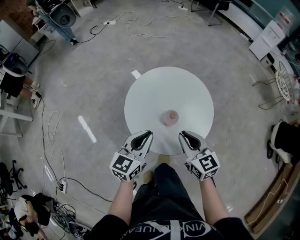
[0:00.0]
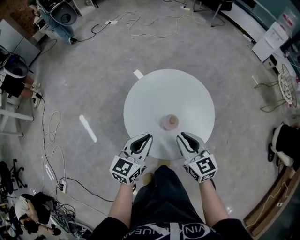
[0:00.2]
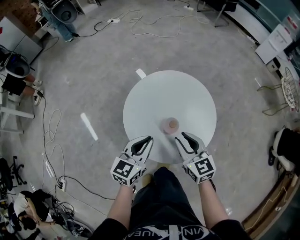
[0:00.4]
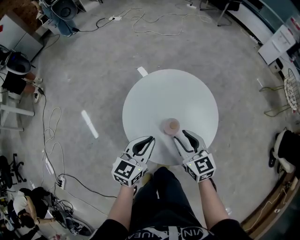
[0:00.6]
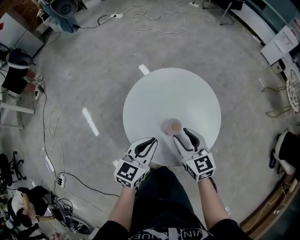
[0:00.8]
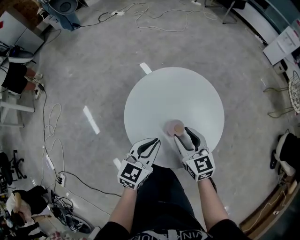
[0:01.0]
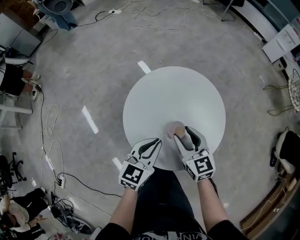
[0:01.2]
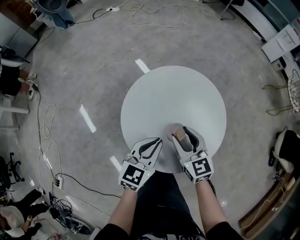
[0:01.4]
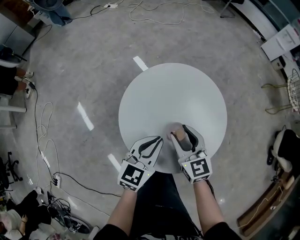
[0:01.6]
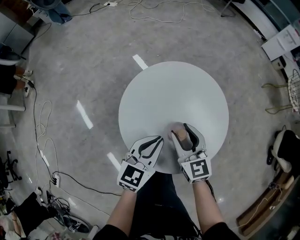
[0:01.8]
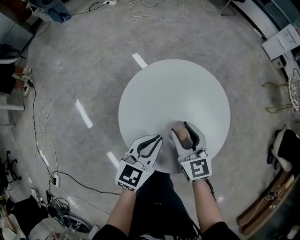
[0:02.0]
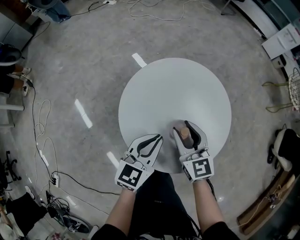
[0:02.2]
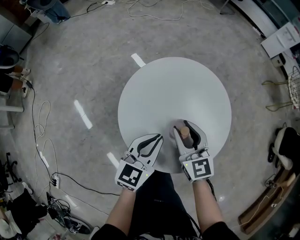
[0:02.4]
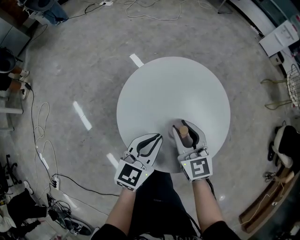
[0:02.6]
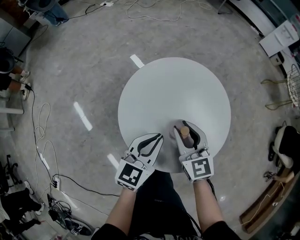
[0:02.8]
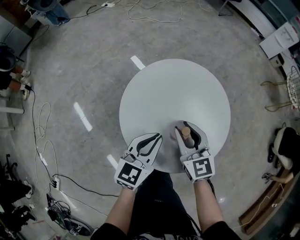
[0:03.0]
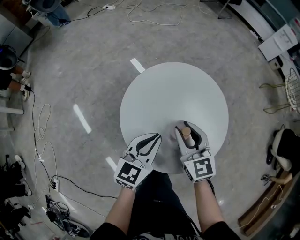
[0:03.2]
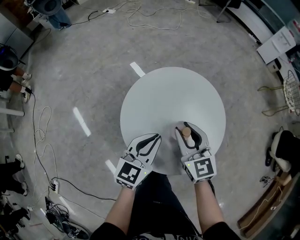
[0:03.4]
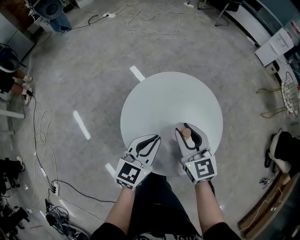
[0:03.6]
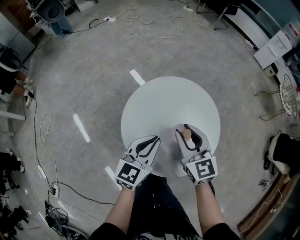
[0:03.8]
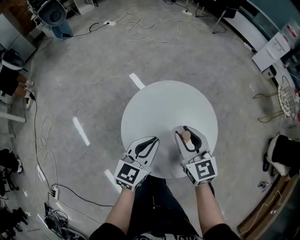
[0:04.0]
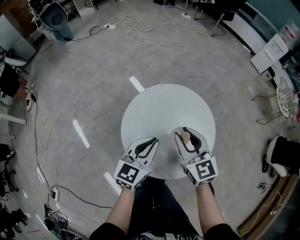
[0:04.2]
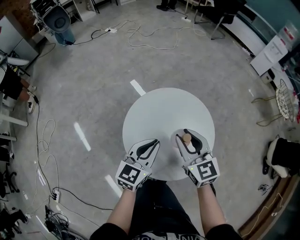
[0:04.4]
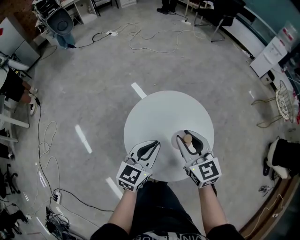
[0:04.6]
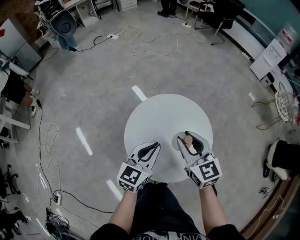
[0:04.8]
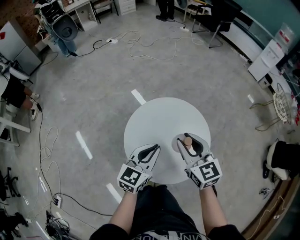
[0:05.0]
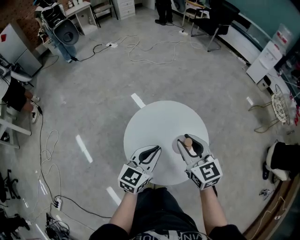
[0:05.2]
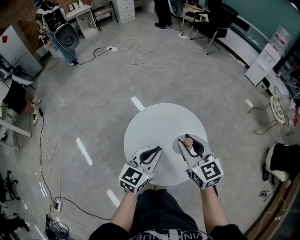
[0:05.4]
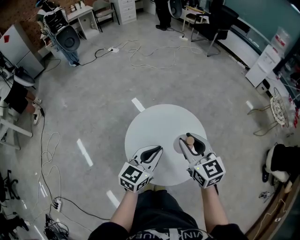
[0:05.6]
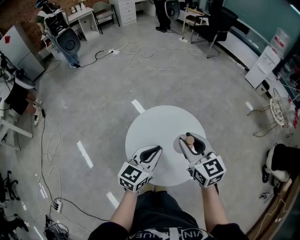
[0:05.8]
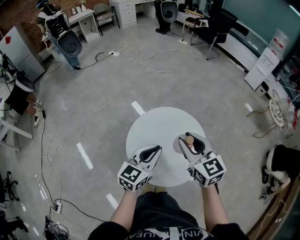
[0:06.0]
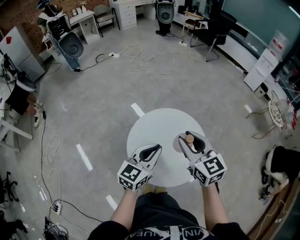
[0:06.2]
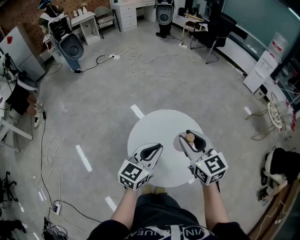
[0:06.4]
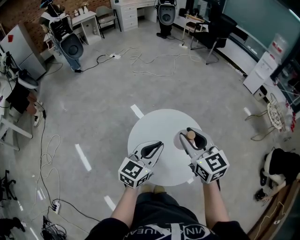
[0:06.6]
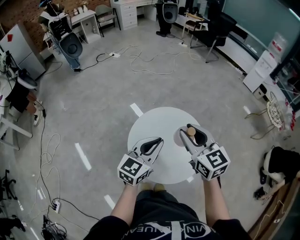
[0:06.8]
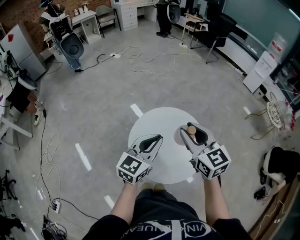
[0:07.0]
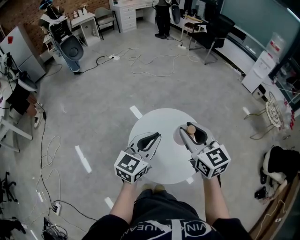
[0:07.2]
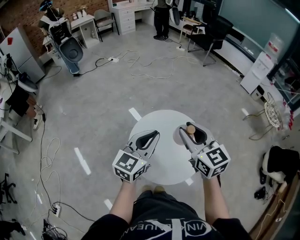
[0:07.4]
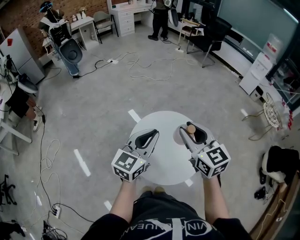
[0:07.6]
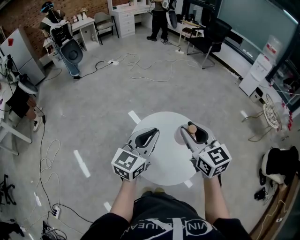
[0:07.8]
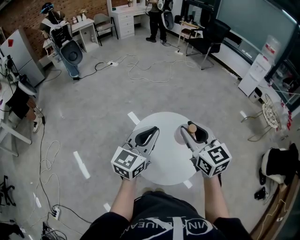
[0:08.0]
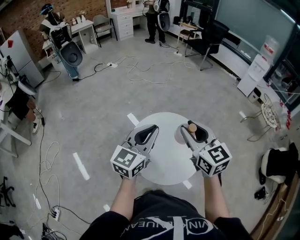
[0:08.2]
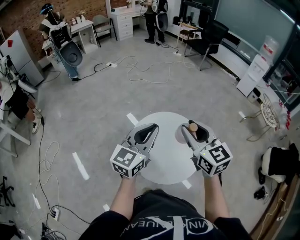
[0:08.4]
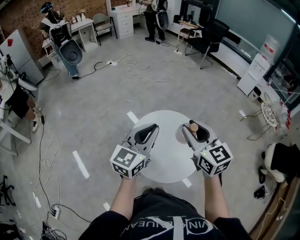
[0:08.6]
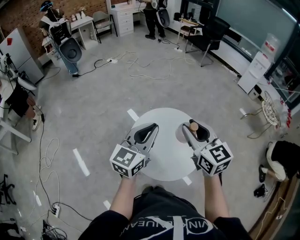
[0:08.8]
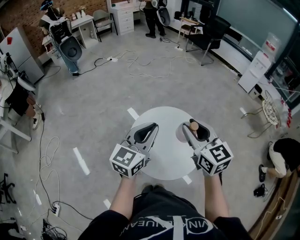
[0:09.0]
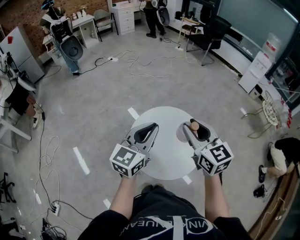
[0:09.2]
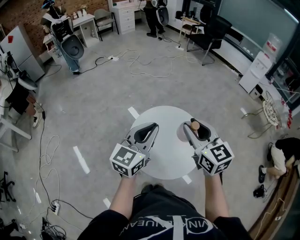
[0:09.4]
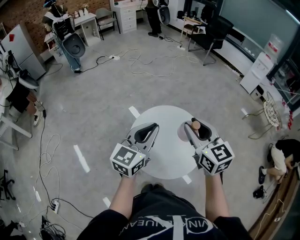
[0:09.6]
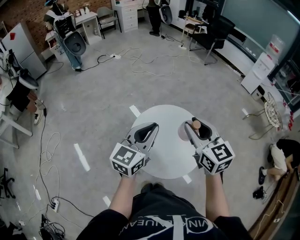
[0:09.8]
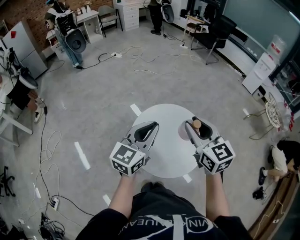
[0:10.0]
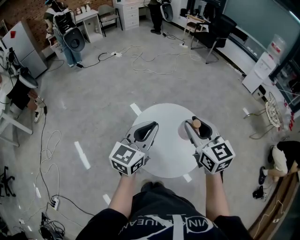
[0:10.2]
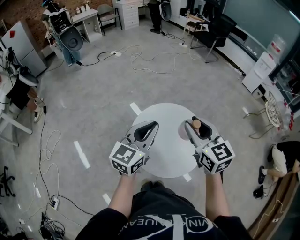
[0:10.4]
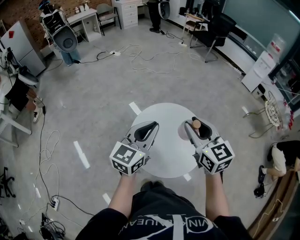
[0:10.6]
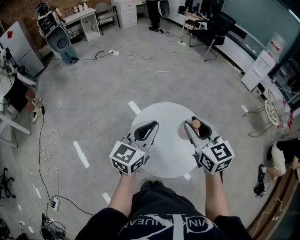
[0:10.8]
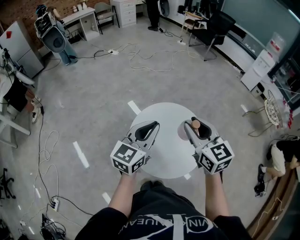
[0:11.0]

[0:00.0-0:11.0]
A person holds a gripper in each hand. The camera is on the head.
0:00.0 to 0:01.6: The left gripper goes approximately 10 cm downward and forward. The right gripper travels forward and downward by about 15 cm, and opens up.
0:01.6 to 0:03.2: The grippers make only small movements.
0:03.2 to 0:04.8: Both grippers travel together upward, about 10 cm.
0:04.8 to 0:06.2: The two grippers go some 10 cm upward.
0:06.2 to 0:07.8: The grippers both shift upward by approximately 10 cm.
0:07.8 to 0:11.0: The grippers stay close to where they were, moving slightly.

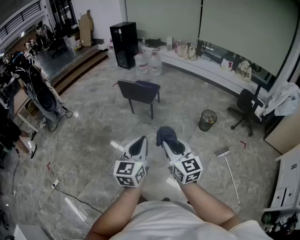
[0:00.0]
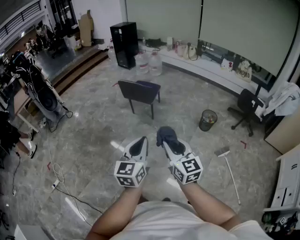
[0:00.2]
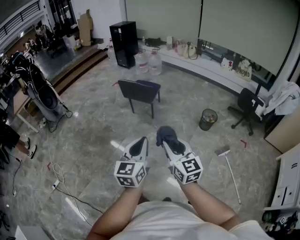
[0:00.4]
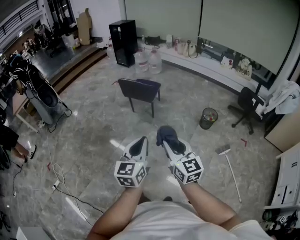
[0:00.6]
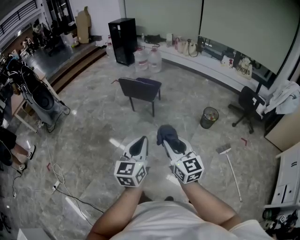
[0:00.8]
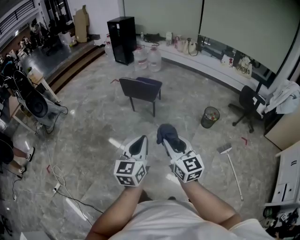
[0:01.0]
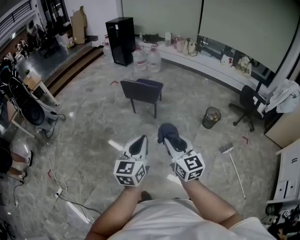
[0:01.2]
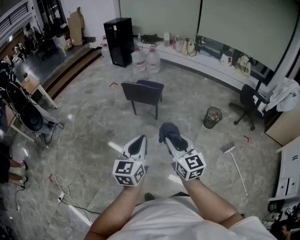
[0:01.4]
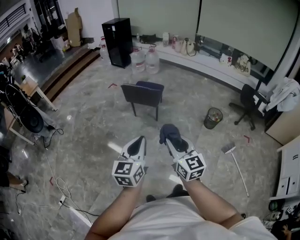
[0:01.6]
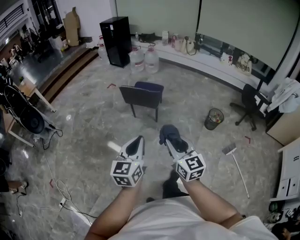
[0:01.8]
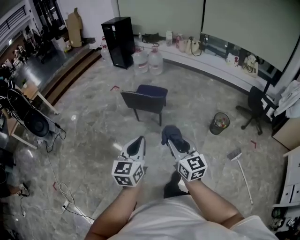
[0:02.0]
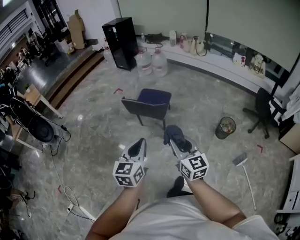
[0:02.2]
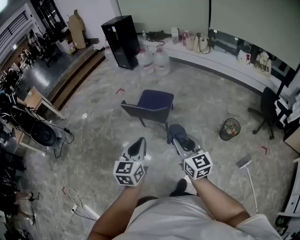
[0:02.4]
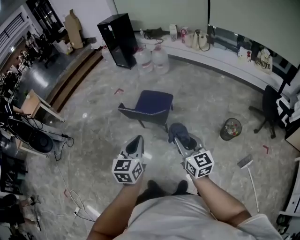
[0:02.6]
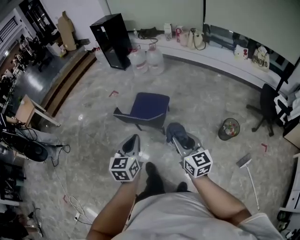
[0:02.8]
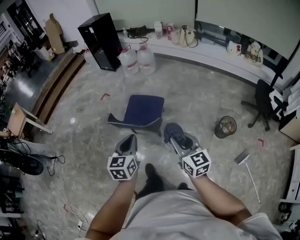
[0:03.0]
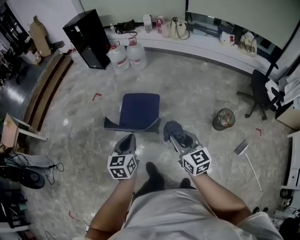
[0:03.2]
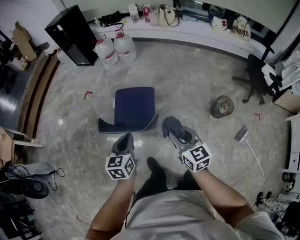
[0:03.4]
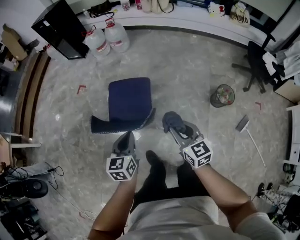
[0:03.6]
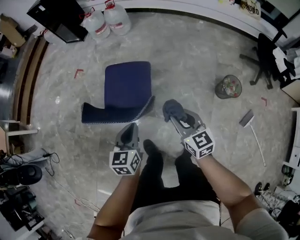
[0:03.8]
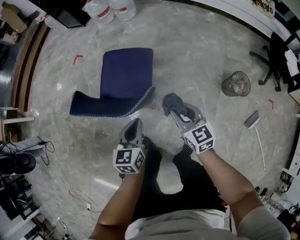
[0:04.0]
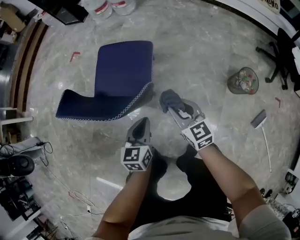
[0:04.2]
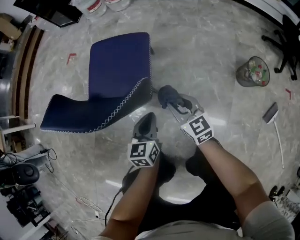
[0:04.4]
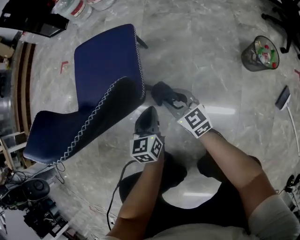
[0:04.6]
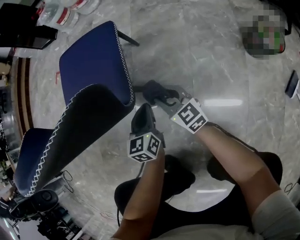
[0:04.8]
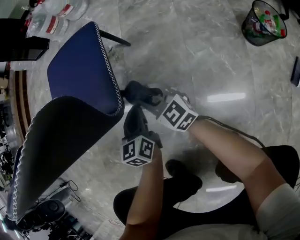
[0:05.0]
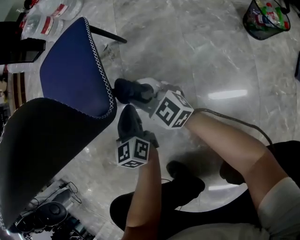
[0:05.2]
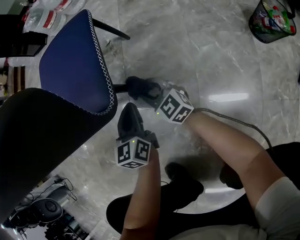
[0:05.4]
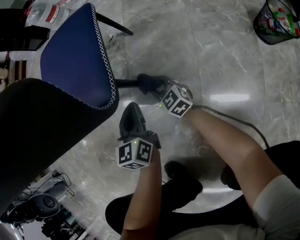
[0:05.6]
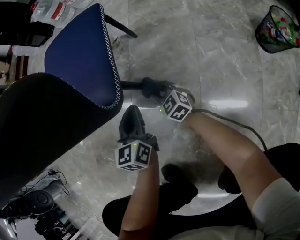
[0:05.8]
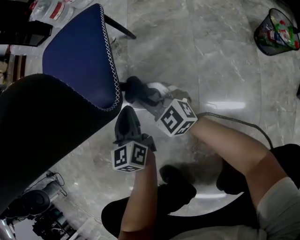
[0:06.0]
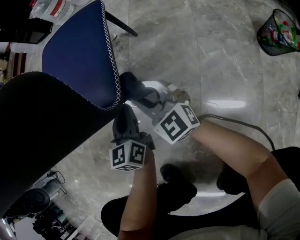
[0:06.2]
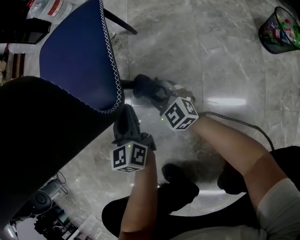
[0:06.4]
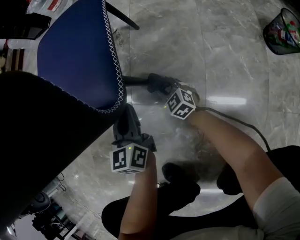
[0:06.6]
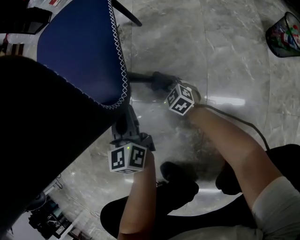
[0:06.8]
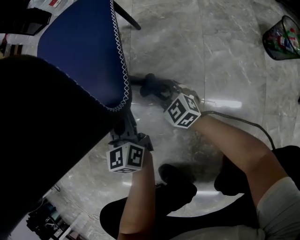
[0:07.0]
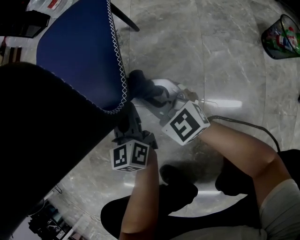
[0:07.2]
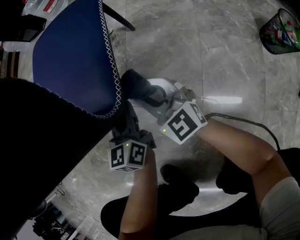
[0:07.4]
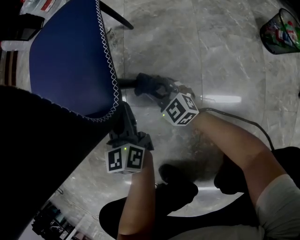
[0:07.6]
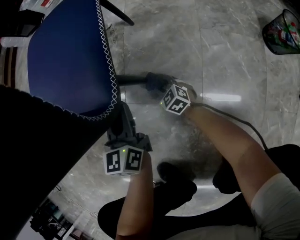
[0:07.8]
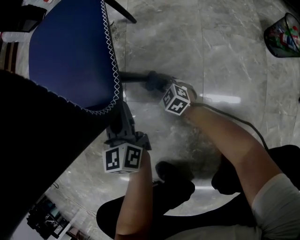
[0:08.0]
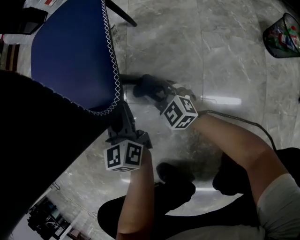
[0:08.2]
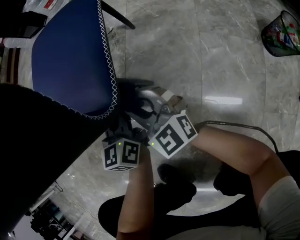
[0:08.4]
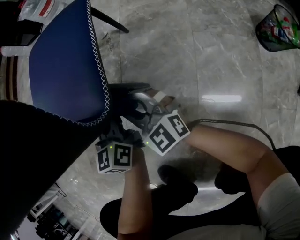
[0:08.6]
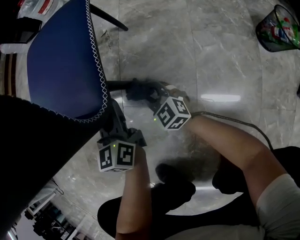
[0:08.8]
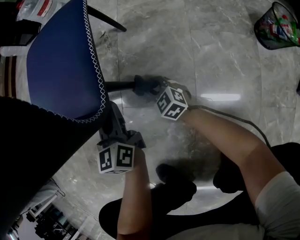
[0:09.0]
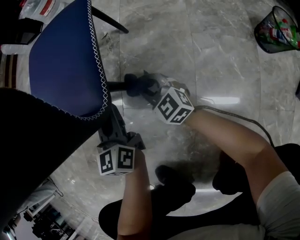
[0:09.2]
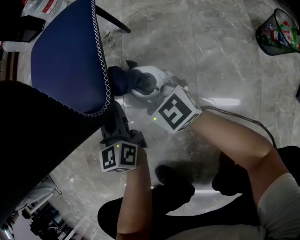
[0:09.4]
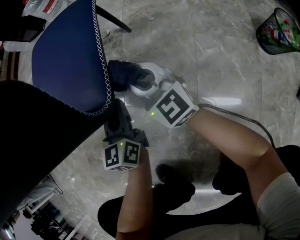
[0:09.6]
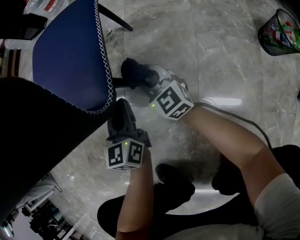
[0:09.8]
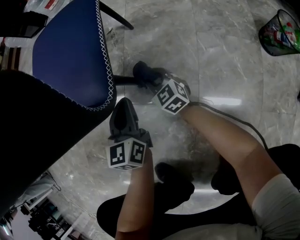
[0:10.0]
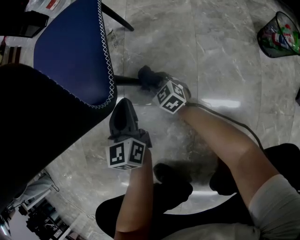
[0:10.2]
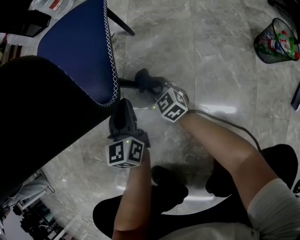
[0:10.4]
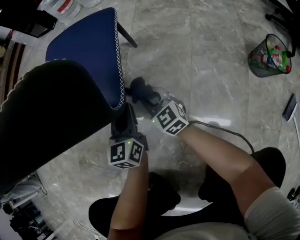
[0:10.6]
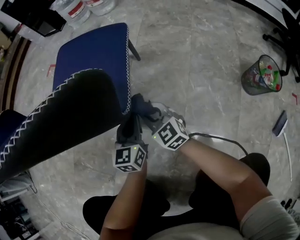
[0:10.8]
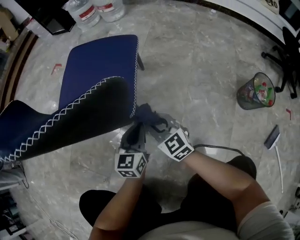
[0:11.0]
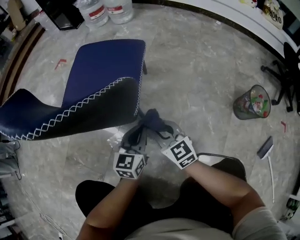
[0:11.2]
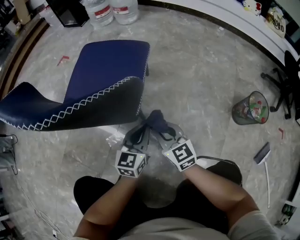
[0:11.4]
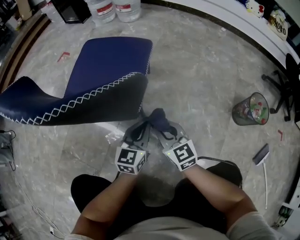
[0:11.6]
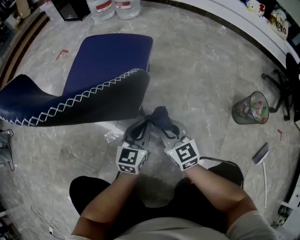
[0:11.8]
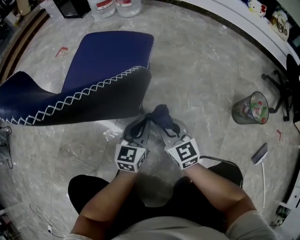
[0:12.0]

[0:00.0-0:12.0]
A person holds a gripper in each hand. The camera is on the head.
0:00.0 to 0:01.6: The right gripper goes approximately 25 cm forward and to the left. Meanwhile the left gripper shifts roughly 25 cm to the left and forward.
0:01.6 to 0:03.0: The two grippers travel together, forward, approximately 50 cm.
0:03.0 to 0:04.4: Both grippers move downward, approximately 50 cm.
0:04.4 to 0:06.0: Both grippers travel together downward, approximately 25 cm. The right gripper rotates about 20 degrees.
0:06.0 to 0:07.6: The right gripper goes up and down, some 30 cm each way, reversing 3 times.
0:07.6 to 0:09.0: The right gripper moves up and down over some 30 cm, changing direction 2 times.
0:09.0 to 0:10.4: The right gripper swings up and down, about 25 cm each way, with 2 reversals.
0:10.4 to 0:12.0: The left gripper travels upward by roughly 10 cm. Meanwhile the right gripper moves upward, about 25 cm.

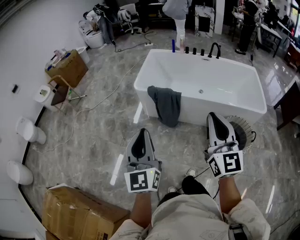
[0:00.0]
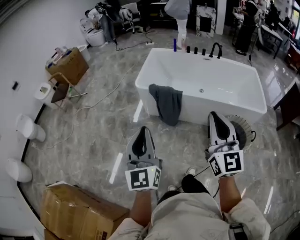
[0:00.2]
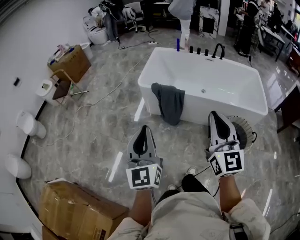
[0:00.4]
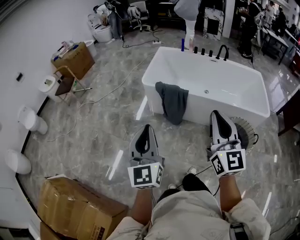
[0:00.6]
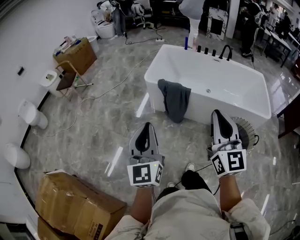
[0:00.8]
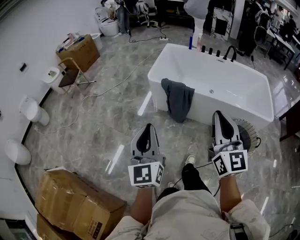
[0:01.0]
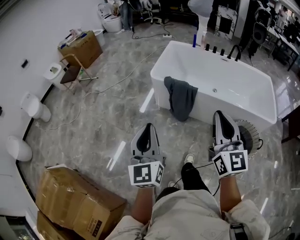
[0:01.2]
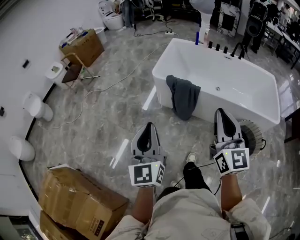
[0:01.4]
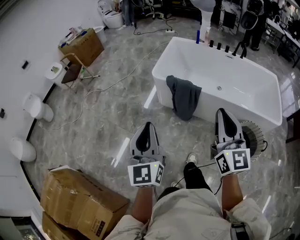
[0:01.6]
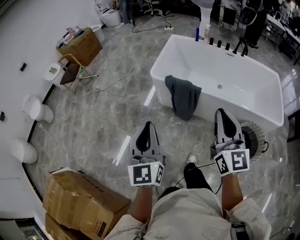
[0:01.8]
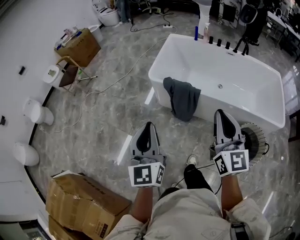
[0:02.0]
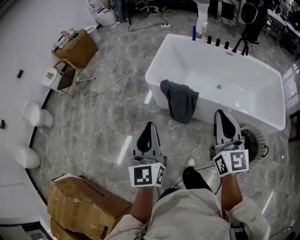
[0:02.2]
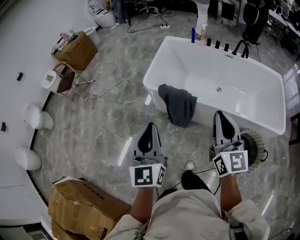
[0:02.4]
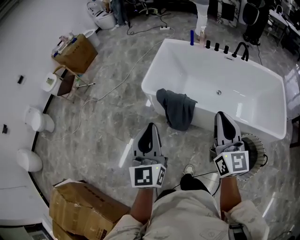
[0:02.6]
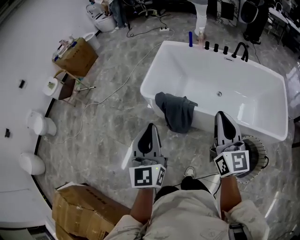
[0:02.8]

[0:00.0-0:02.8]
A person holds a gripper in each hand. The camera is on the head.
0:00.0 to 0:01.4: The grippers both shift to the left by some 5 cm.
0:01.4 to 0:02.8: The grippers both shift forward and to the right by about 30 cm.
